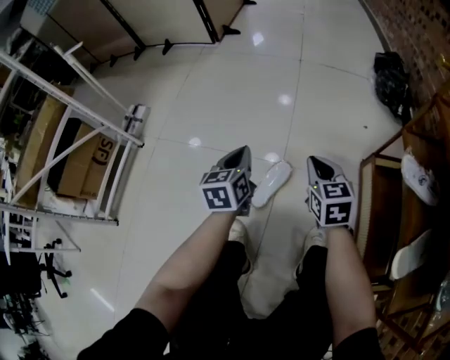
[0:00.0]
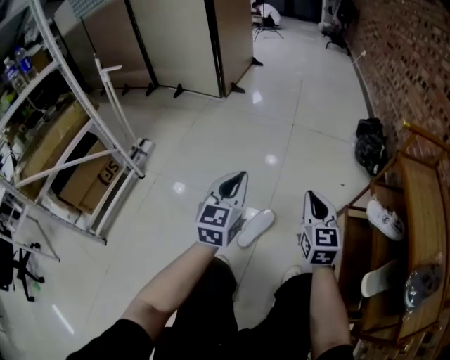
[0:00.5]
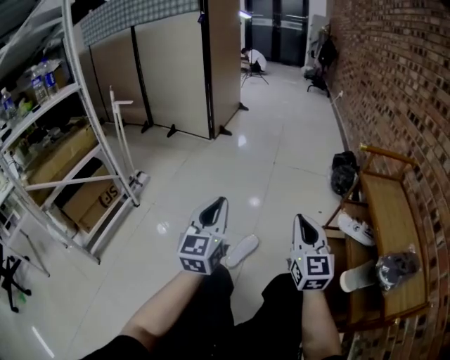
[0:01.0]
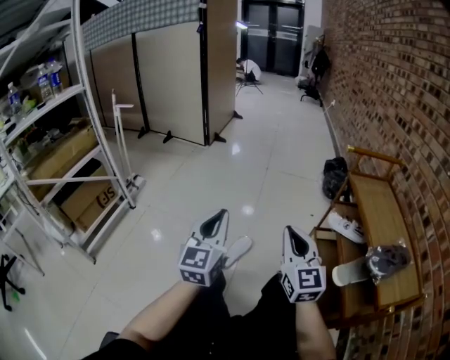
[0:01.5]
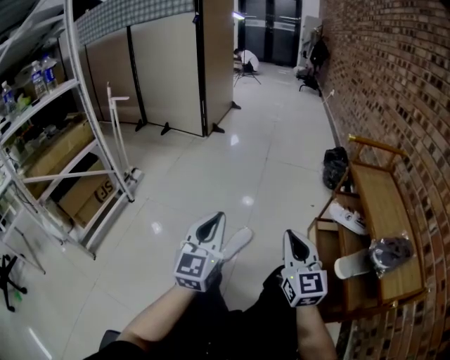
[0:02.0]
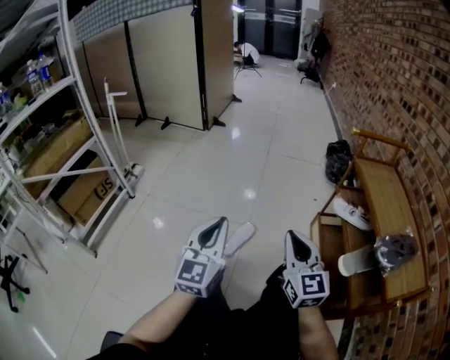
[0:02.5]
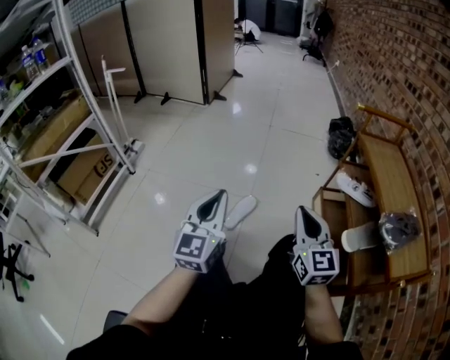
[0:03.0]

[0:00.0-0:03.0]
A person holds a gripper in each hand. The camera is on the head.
0:00.0 to 0:01.5: Both grippers move upward and backward, some 35 cm. The left gripper tilts its fingers approximately 30 degrees upward. Meanwhile the right gripper angles its fingers upward, by roughly 30 degrees.
0:01.5 to 0:03.0: The left gripper ends up some 5 cm from where it was. Meanwhile the right gripper shifts by about 5 cm.

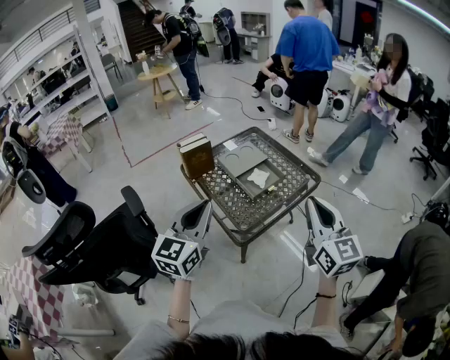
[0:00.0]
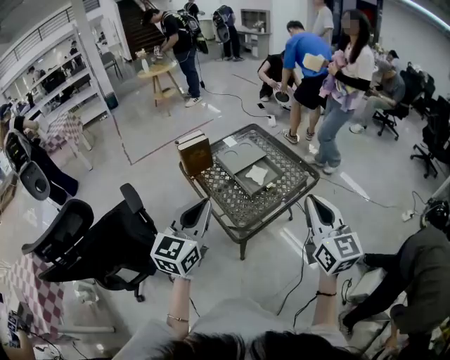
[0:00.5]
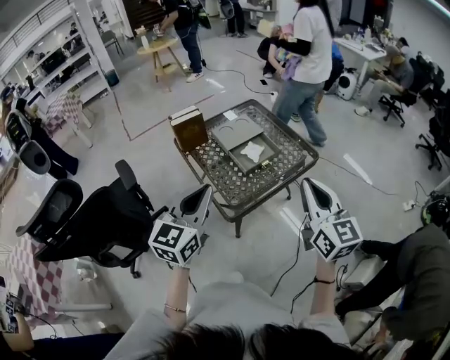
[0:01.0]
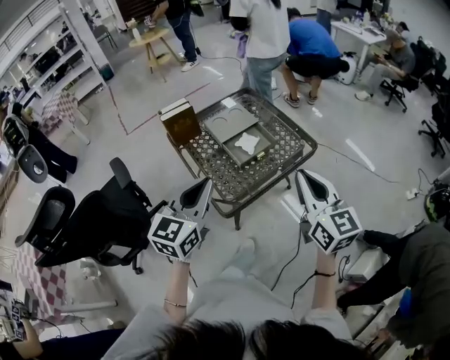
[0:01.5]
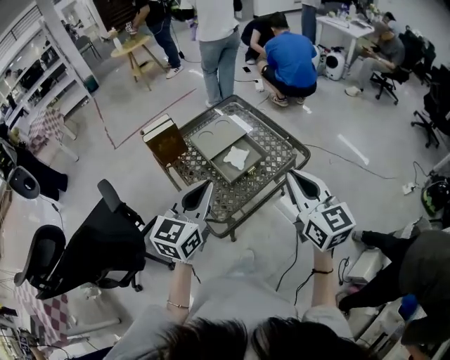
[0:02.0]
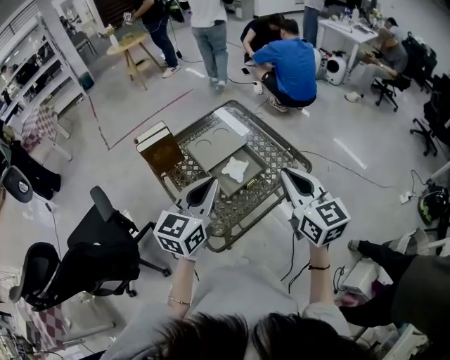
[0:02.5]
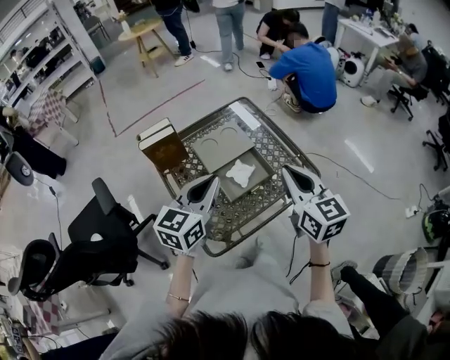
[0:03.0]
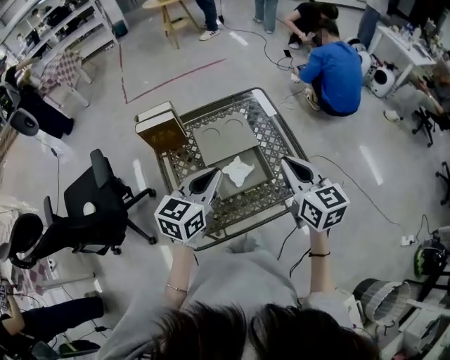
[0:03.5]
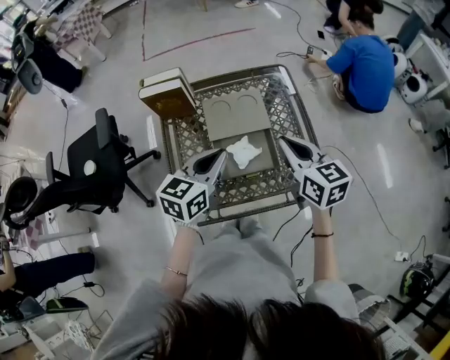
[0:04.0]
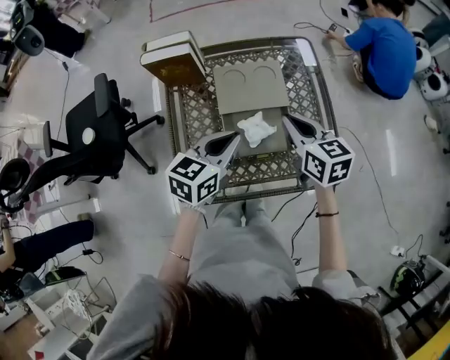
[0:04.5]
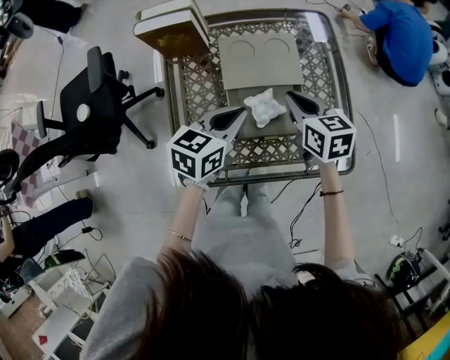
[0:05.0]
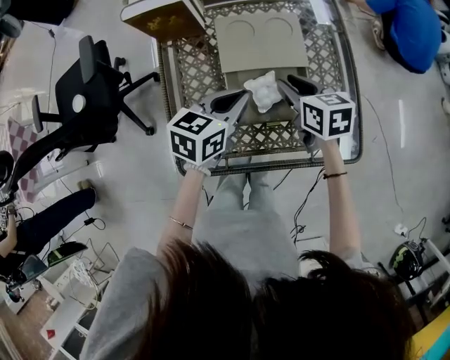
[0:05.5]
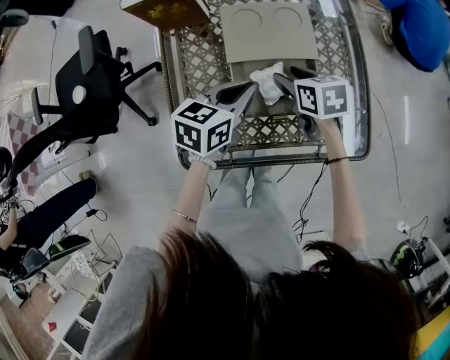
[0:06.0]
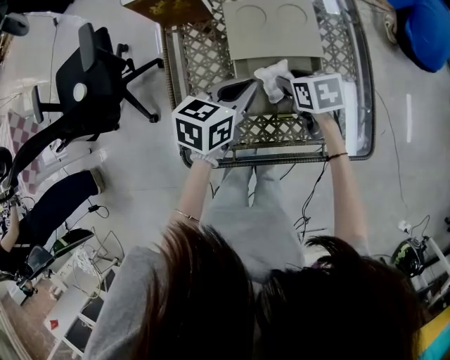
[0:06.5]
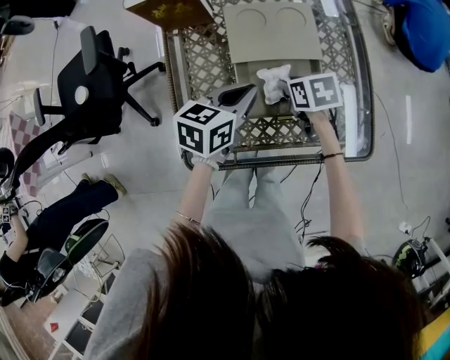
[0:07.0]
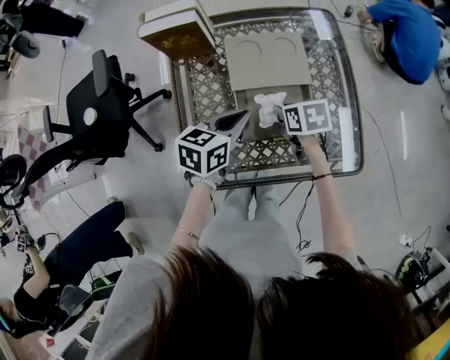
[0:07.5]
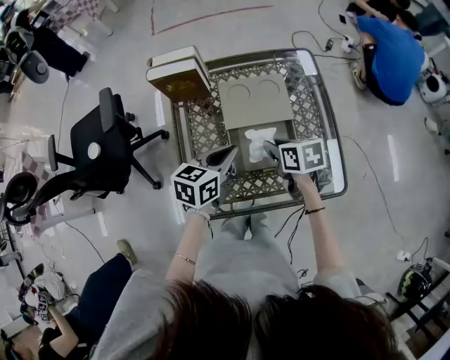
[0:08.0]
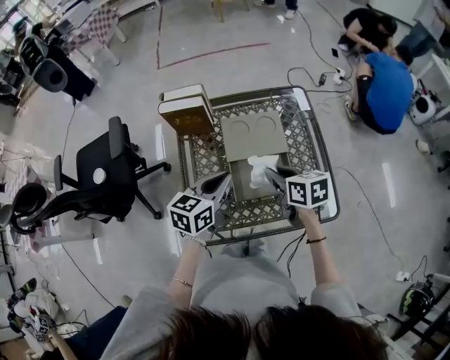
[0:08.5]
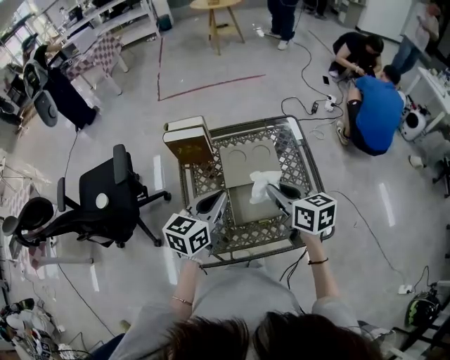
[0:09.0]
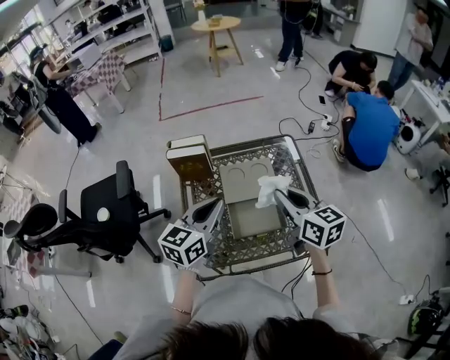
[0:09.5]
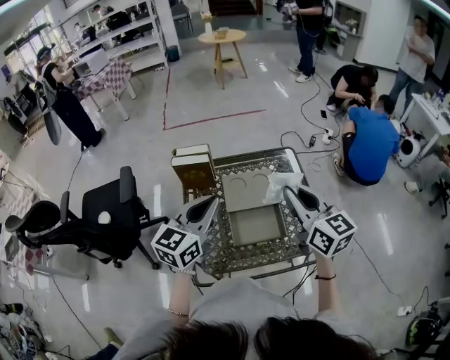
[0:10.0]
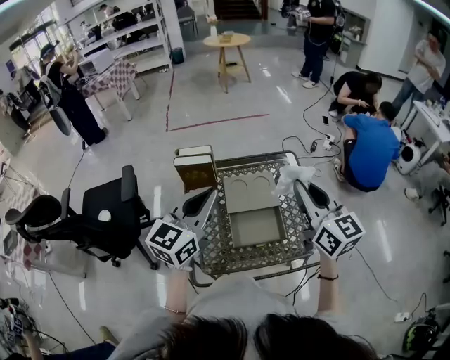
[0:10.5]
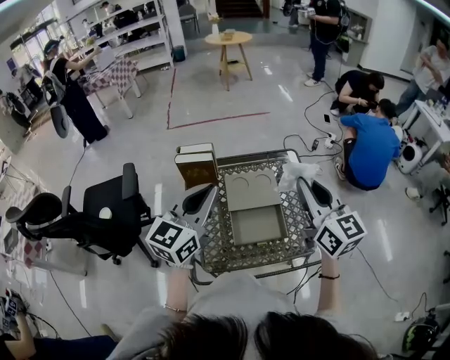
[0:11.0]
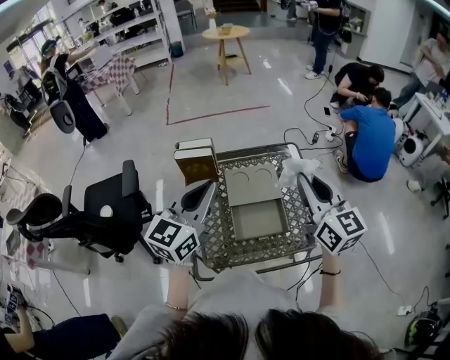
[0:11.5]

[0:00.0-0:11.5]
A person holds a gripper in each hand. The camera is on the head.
0:00.0 to 0:02.0: The left gripper is displaced to the right, forward and downward by roughly 15 cm, while the right gripper shifts roughly 15 cm forward and downward.
0:02.0 to 0:04.0: The left gripper shifts by about 25 cm, and turns by roughly 30 degrees. The right gripper shifts by roughly 30 cm, and swivels roughly 40 degrees.
0:04.0 to 0:06.0: The right gripper goes about 25 cm downward, swivels some 30 degrees, and opens its fingers. Meanwhile the left gripper heads downward, covering approximately 15 cm.
0:06.0 to 0:07.5: The right gripper closes its fingers.
0:07.5 to 0:09.5: Both grippers travel together upward, about 25 cm. The left gripper swivels about 30 degrees; the right gripper points its fingers about 40 degrees further upward.
0:09.5 to 0:11.5: Both grippers move upward, some 10 cm. The right gripper rotates about 20 degrees.

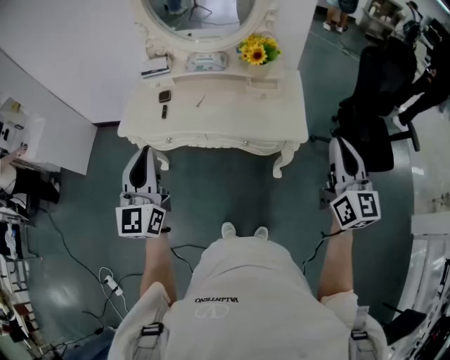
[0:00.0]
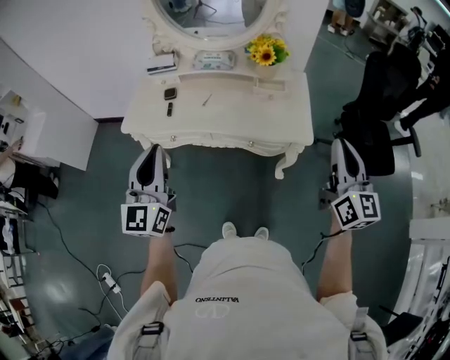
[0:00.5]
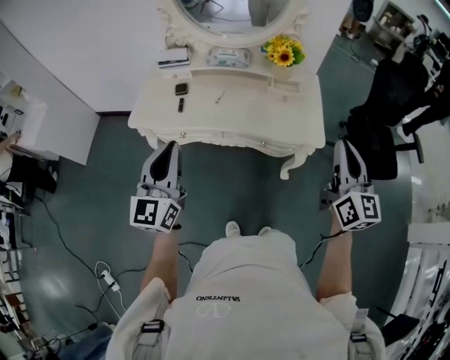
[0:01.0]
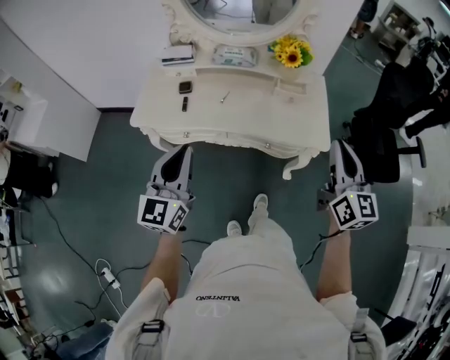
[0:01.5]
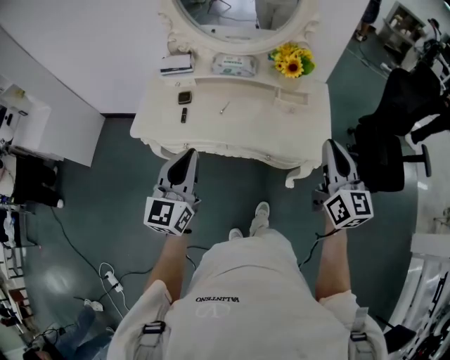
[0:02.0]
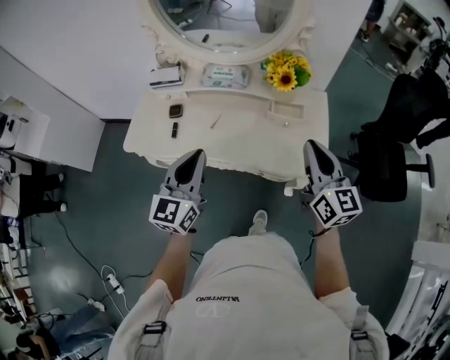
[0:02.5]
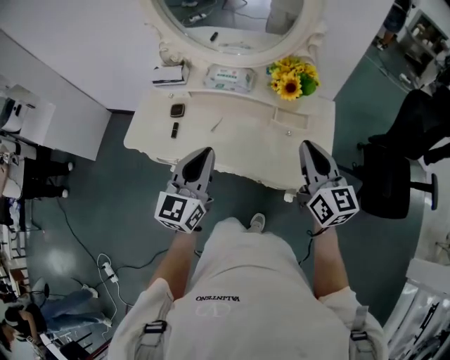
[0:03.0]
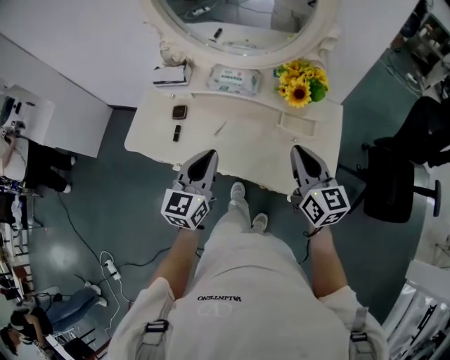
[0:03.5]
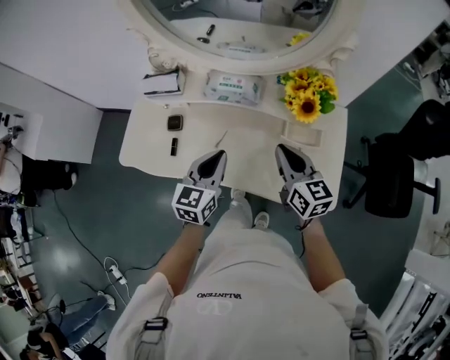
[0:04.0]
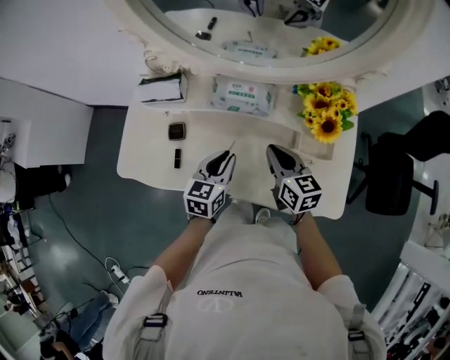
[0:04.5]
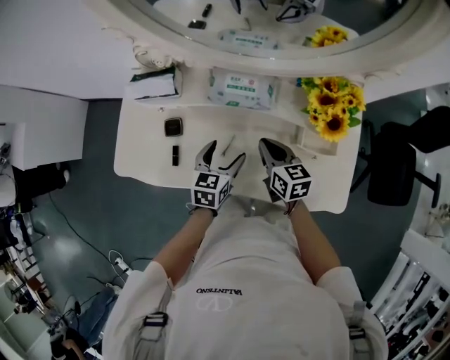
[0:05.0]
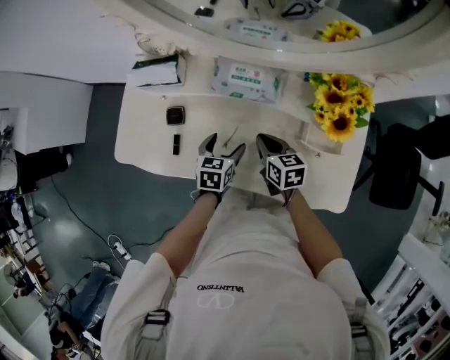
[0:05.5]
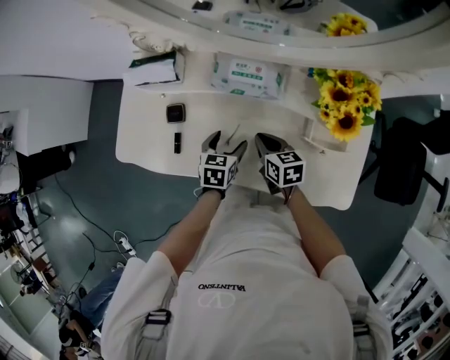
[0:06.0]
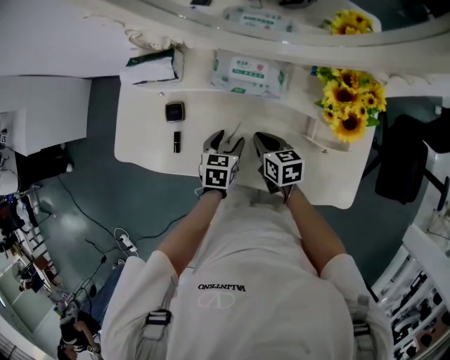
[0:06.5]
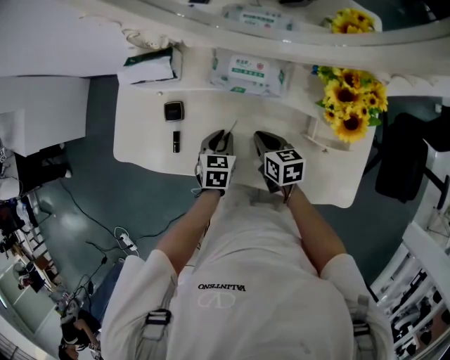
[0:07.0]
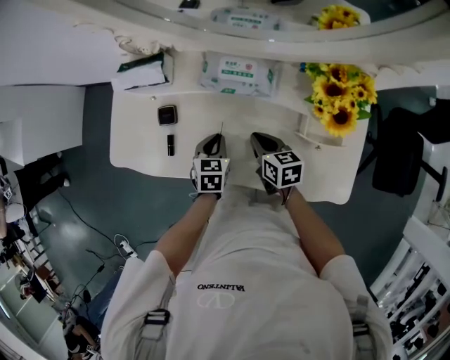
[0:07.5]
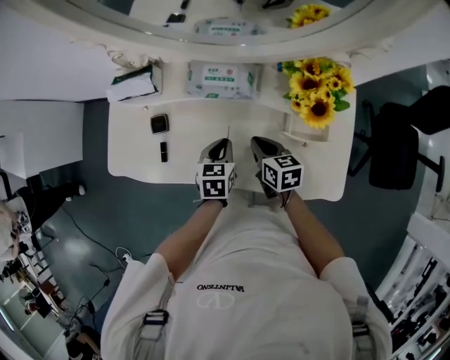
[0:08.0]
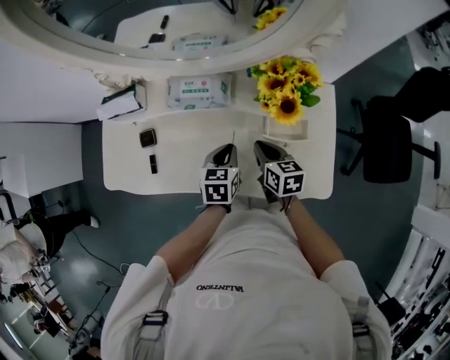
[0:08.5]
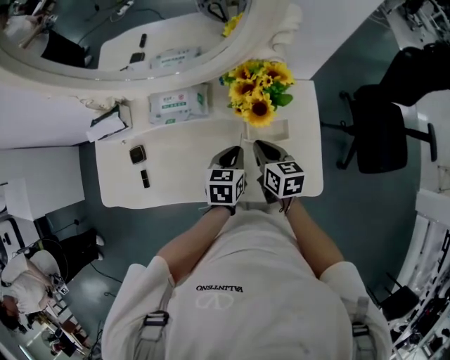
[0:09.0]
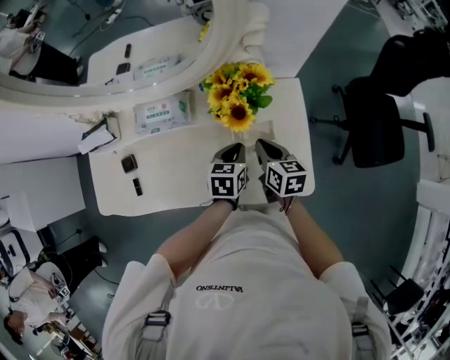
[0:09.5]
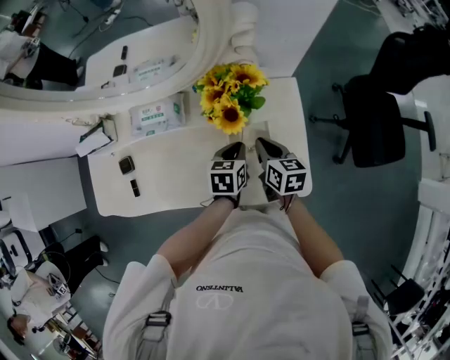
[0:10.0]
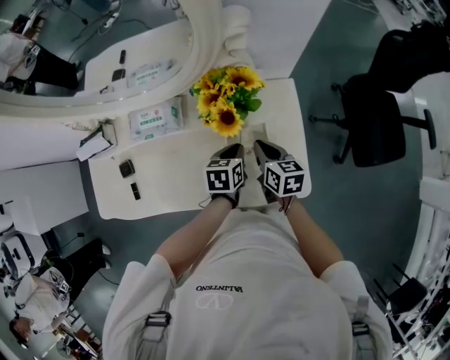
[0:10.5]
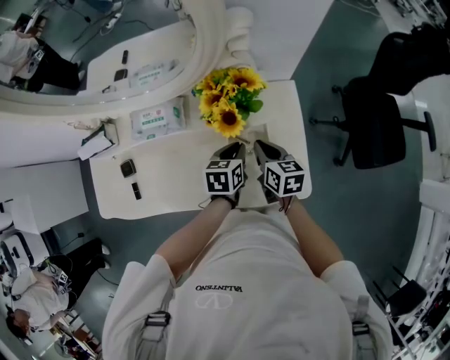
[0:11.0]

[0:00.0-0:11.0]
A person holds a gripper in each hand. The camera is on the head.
0:00.0 to 0:02.0: The left gripper is displaced forward and downward by approximately 10 cm, while the right gripper shifts about 15 cm to the left and forward.
0:02.0 to 0:03.5: The right gripper heads forward and downward, covering about 20 cm; the left gripper moves forward, to the right and downward, some 20 cm.
0:03.5 to 0:05.5: The right gripper goes some 30 cm downward, forward and to the left, and turns by roughly 30 degrees. The left gripper goes some 30 cm downward and forward, points its fingers approximately 40 degrees further downward, and opens its fingers.
0:05.5 to 0:07.5: The left gripper closes up.
0:07.5 to 0:09.0: The right gripper shifts roughly 20 cm to the right and upward, while the left gripper goes some 20 cm to the right.
0:09.0 to 0:11.0: Both grippers travel together to the right, roughly 5 cm.

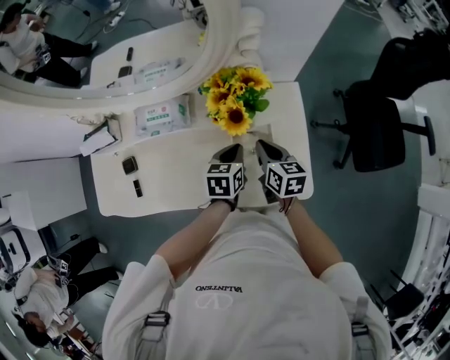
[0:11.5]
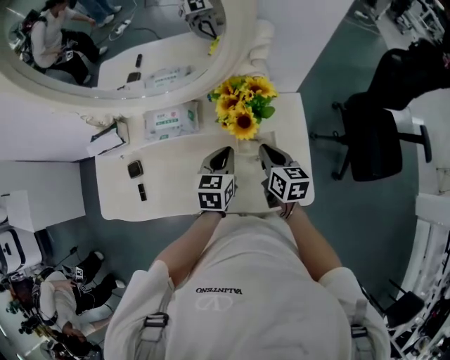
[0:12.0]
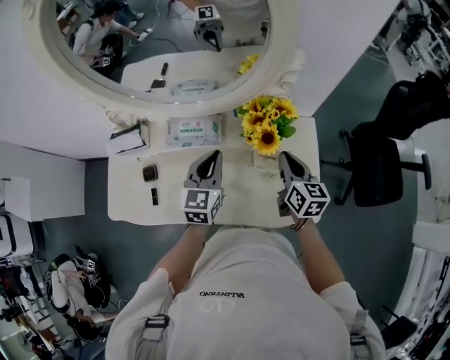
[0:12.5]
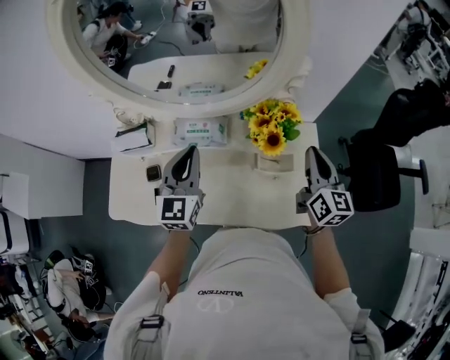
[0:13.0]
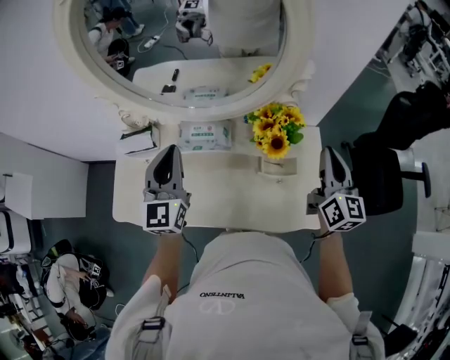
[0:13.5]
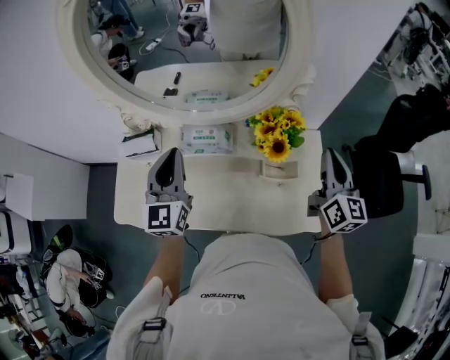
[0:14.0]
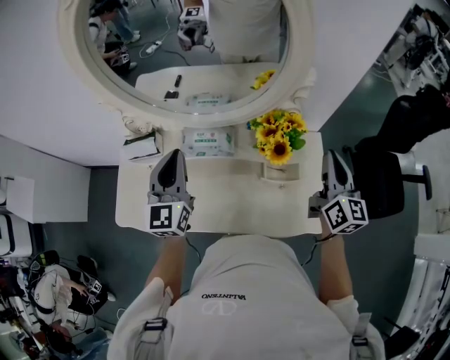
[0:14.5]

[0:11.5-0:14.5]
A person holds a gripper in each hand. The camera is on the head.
0:11.5 to 0:13.0: The left gripper heads upward and to the left, covering roughly 30 cm, and tips its fingers upward by roughly 40 degrees, while the right gripper goes about 20 cm upward, and turns by about 30 degrees.
0:13.0 to 0:14.5: The left gripper shifts about 5 cm to the left. Meanwhile the right gripper changes place by approximately 5 cm.
